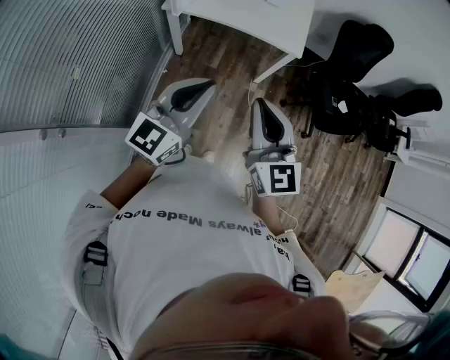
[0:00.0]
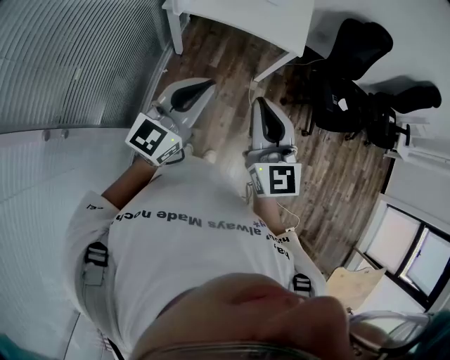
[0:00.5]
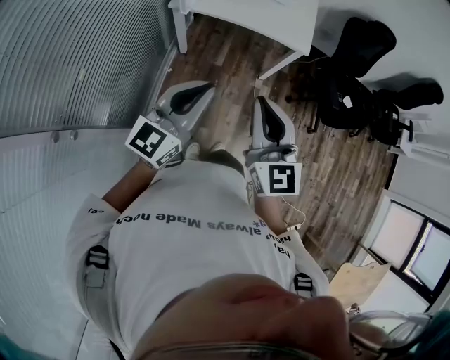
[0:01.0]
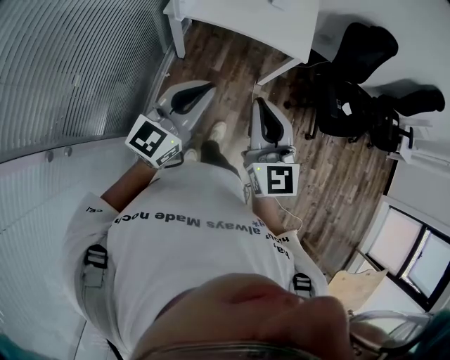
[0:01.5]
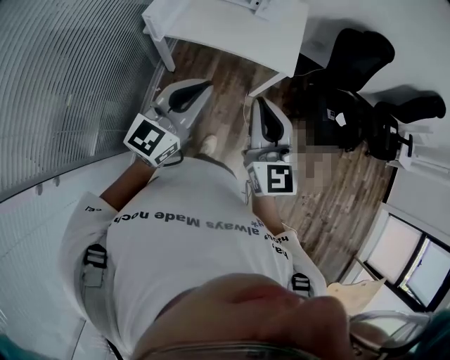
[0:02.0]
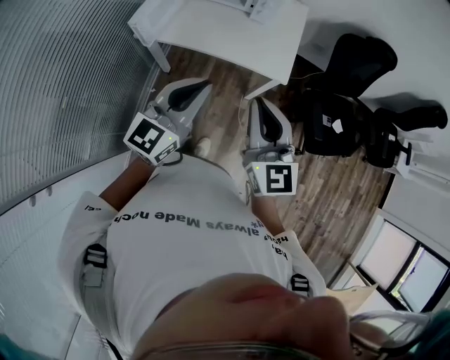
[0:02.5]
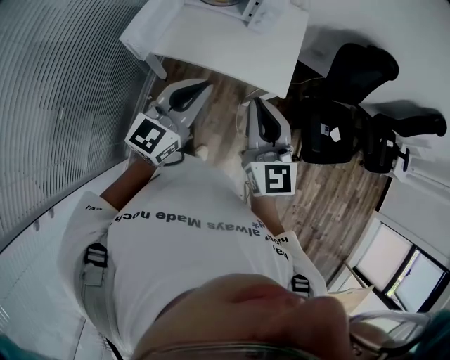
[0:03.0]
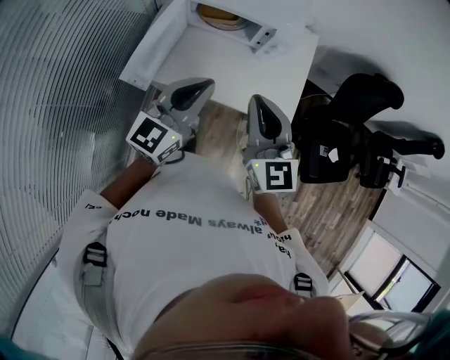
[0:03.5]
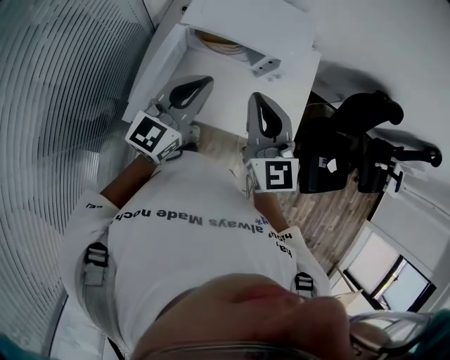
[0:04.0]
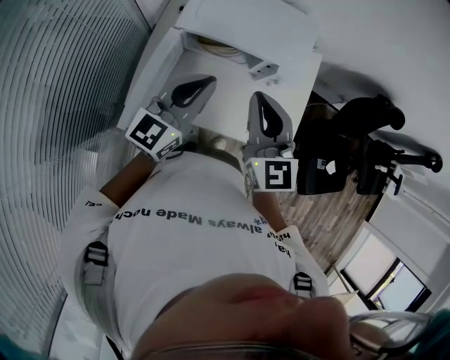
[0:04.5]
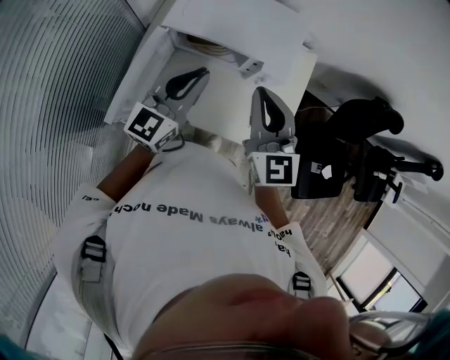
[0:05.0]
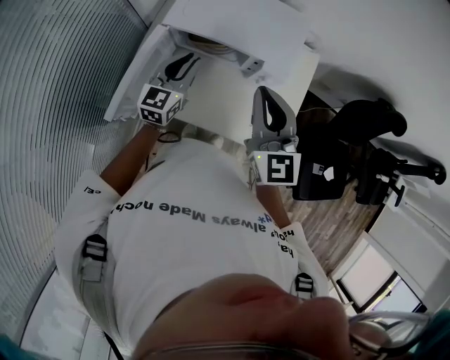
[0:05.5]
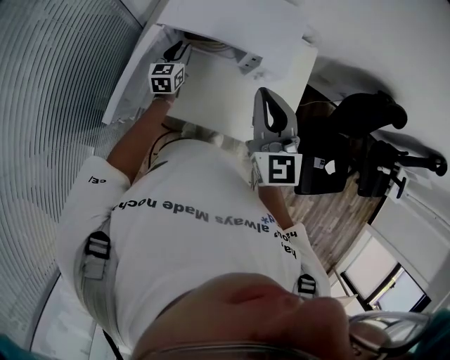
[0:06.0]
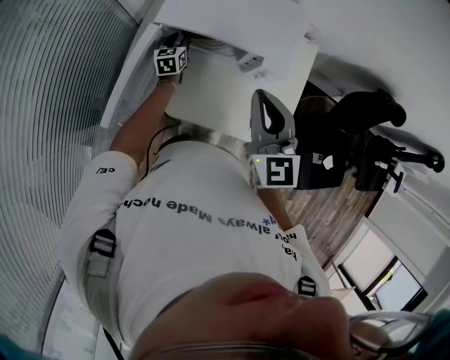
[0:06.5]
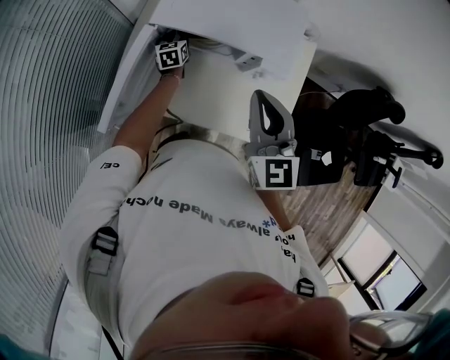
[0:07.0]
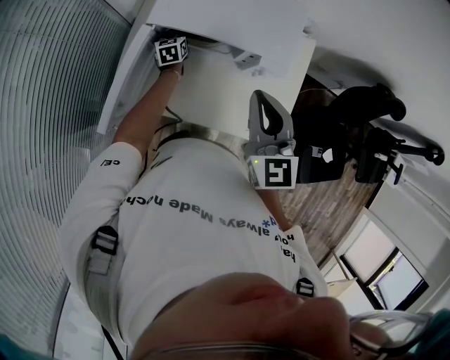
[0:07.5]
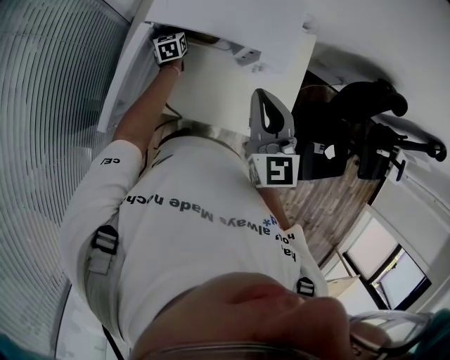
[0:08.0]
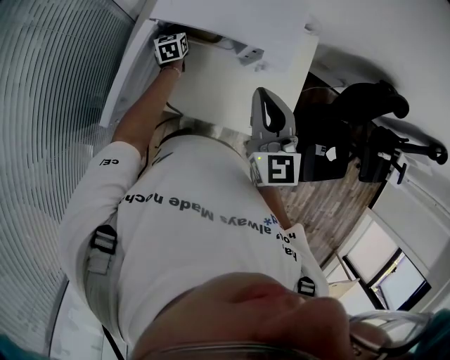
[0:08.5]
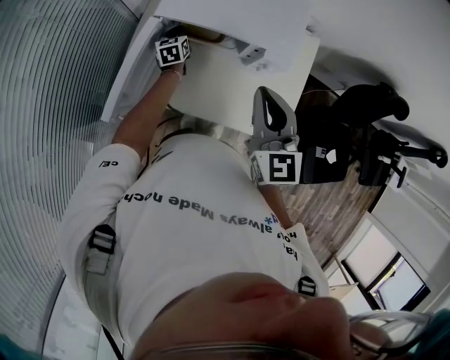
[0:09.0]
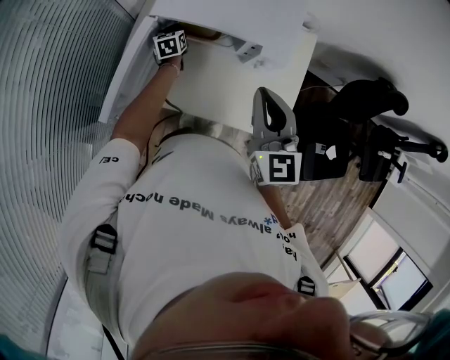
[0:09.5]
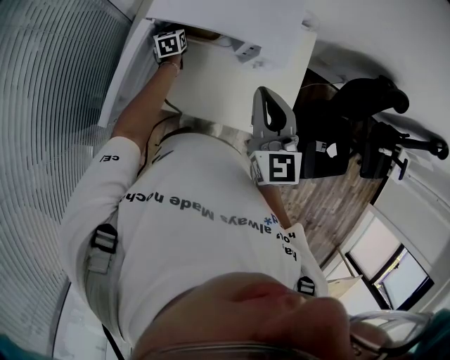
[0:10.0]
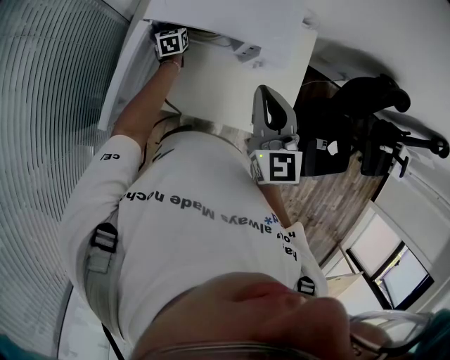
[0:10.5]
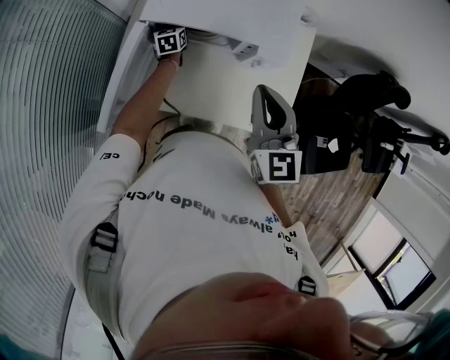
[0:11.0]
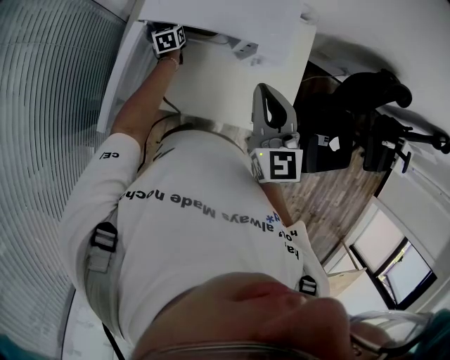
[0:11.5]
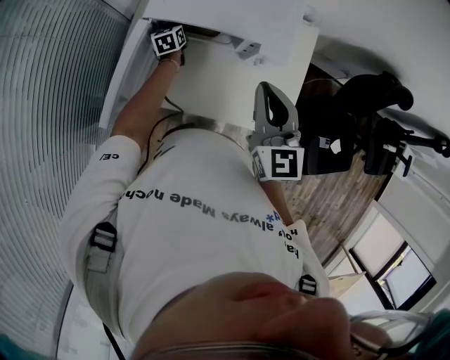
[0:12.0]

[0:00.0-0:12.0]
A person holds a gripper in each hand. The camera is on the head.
0:00.0 to 0:02.0: The two grippers go about 15 cm forward.
0:02.0 to 0:04.0: Both grippers are carried forward, roughly 50 cm.
0:04.0 to 0:06.0: The left gripper is displaced downward and forward by about 30 cm, turns by approximately 30 degrees, and opens up. Meanwhile the right gripper heads to the right and forward, covering roughly 10 cm.
0:06.0 to 0:08.0: The left gripper moves downward and forward, about 15 cm, and closes.
0:08.0 to 0:12.0: There are only small adjustments of the grippers.

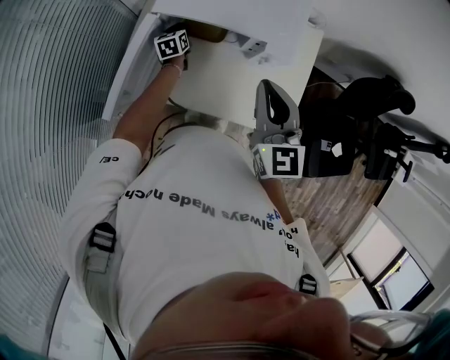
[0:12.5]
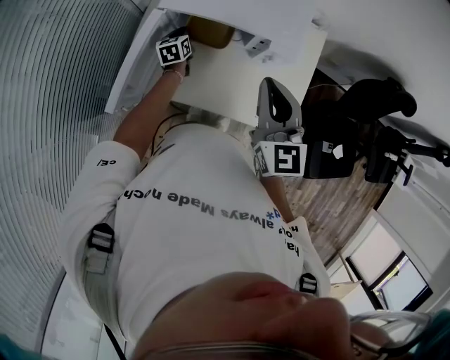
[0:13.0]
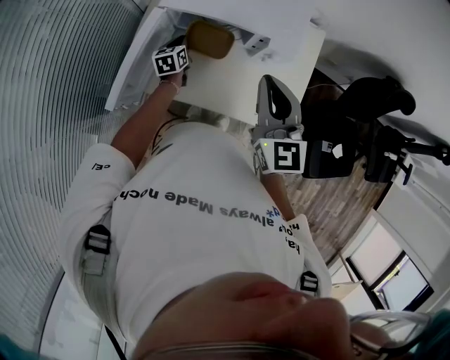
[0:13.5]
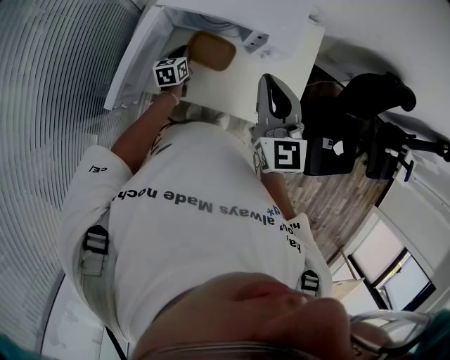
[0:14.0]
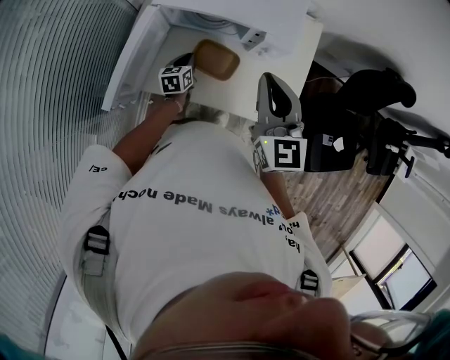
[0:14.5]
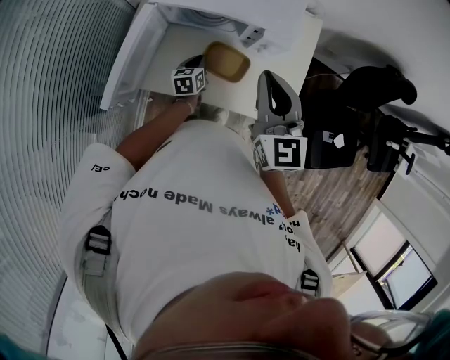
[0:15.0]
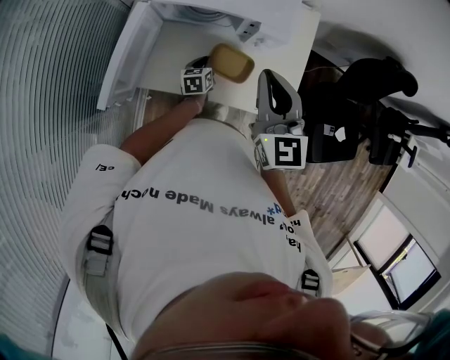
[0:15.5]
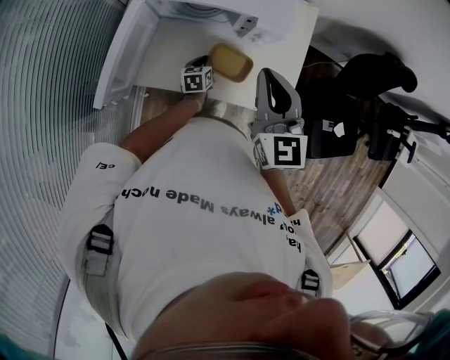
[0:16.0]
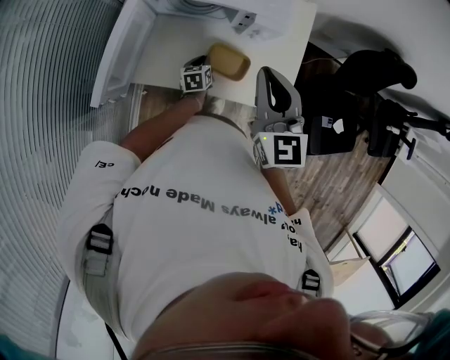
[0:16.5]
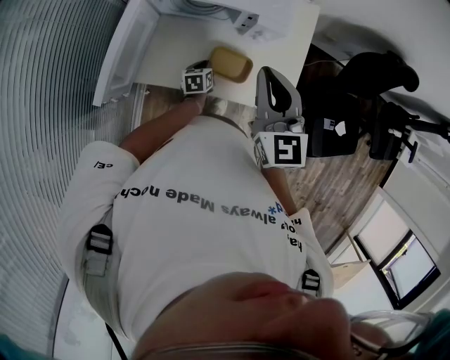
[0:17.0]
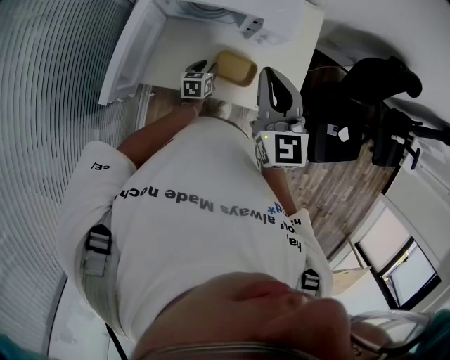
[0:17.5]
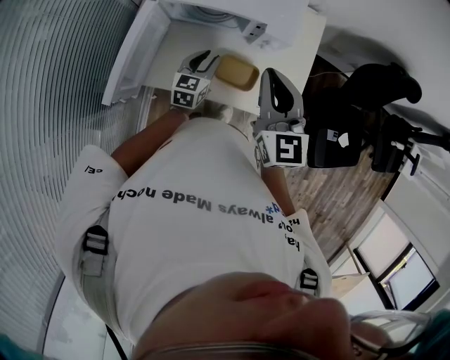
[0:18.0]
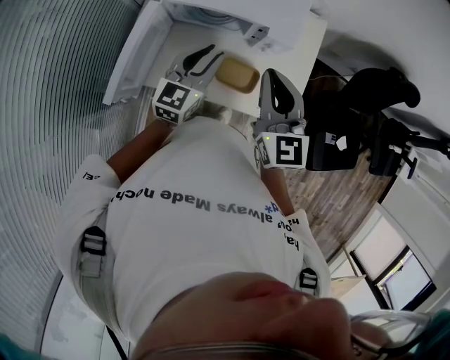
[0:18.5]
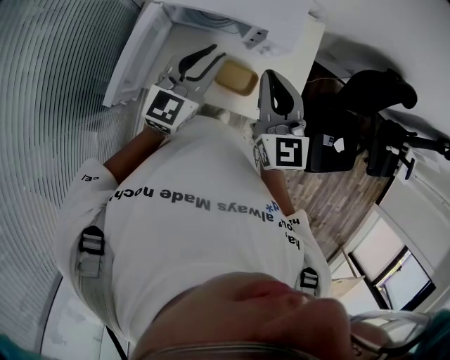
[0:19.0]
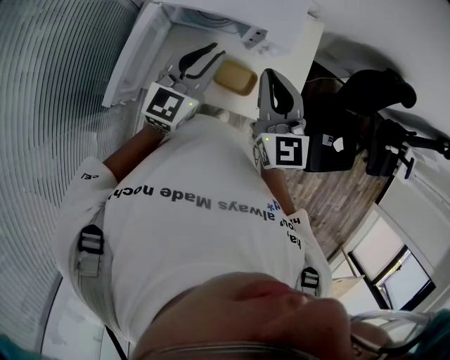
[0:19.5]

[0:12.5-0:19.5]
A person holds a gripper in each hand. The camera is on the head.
0:12.5 to 0:14.5: The left gripper travels backward by roughly 15 cm.
0:14.5 to 0:16.0: The left gripper shifts roughly 10 cm to the right and downward.
0:16.0 to 0:17.5: The left gripper opens.
0:17.5 to 0:19.5: The left gripper shifts some 35 cm upward, and points its fingers approximately 40 degrees further upward.

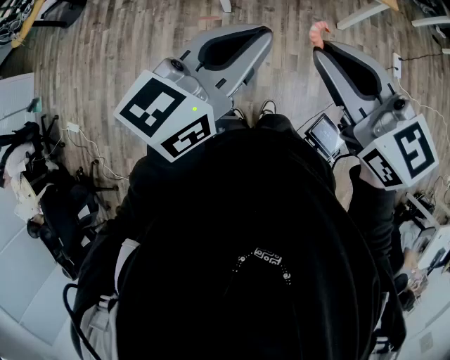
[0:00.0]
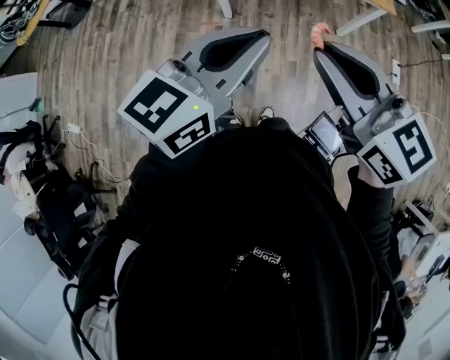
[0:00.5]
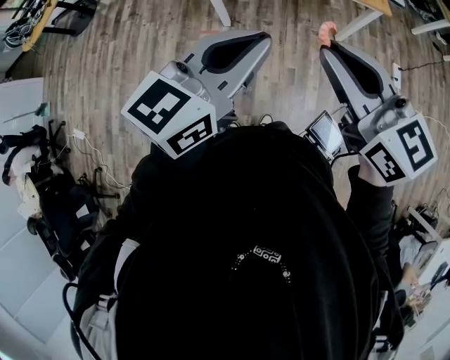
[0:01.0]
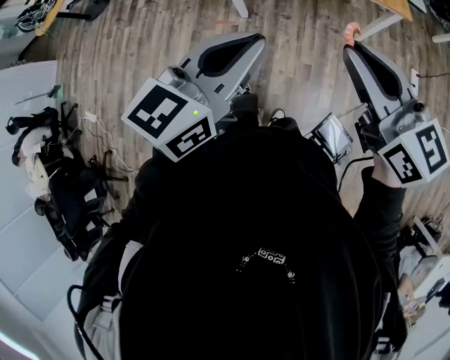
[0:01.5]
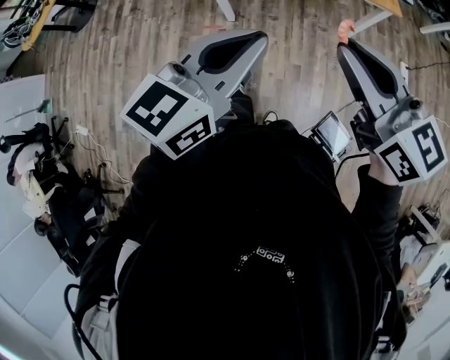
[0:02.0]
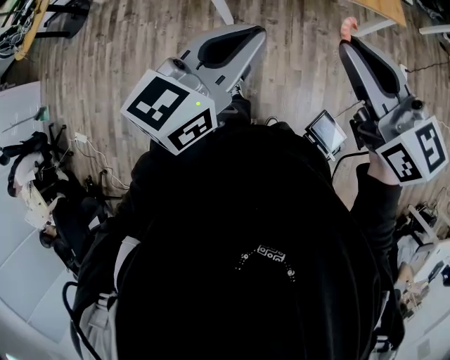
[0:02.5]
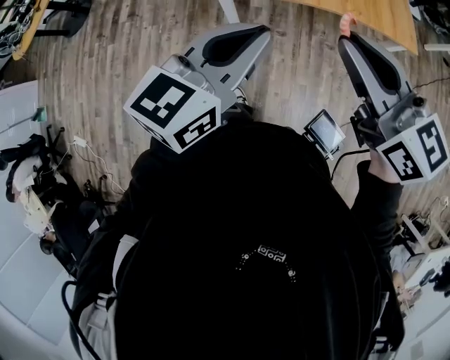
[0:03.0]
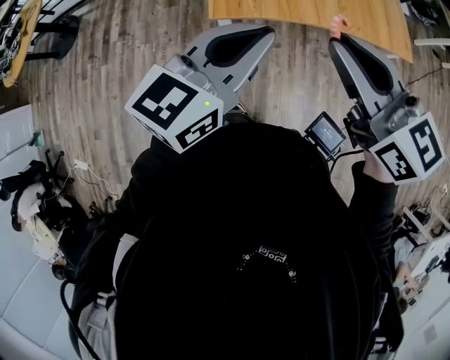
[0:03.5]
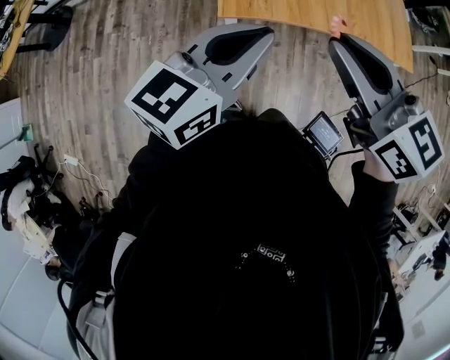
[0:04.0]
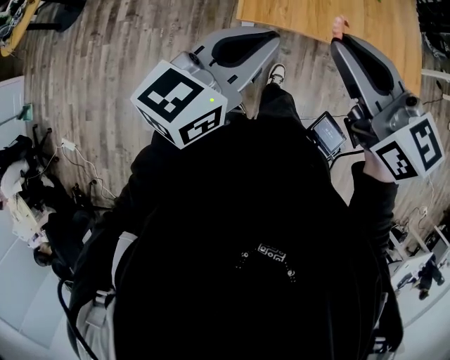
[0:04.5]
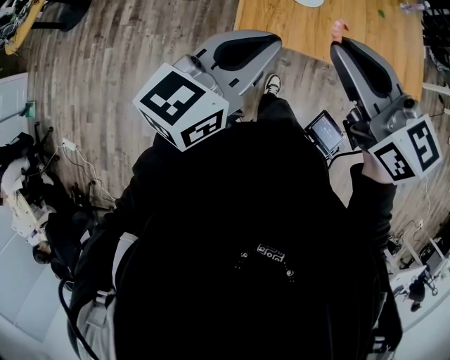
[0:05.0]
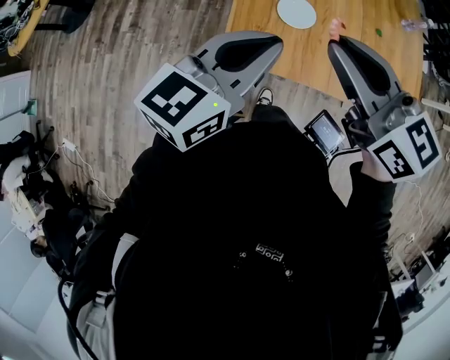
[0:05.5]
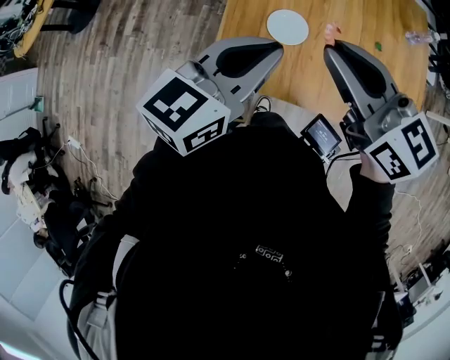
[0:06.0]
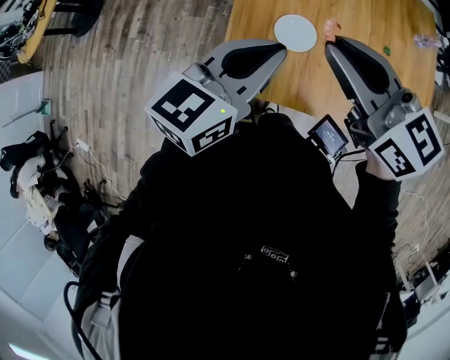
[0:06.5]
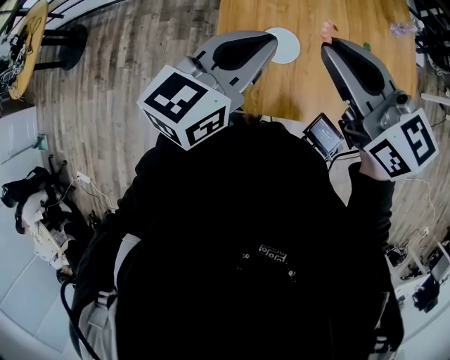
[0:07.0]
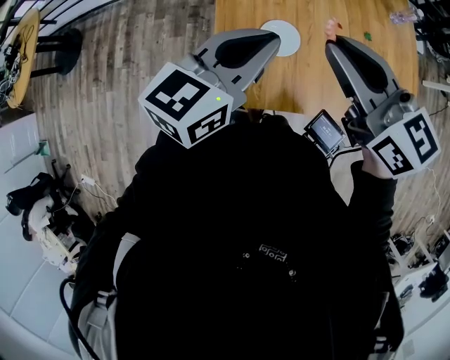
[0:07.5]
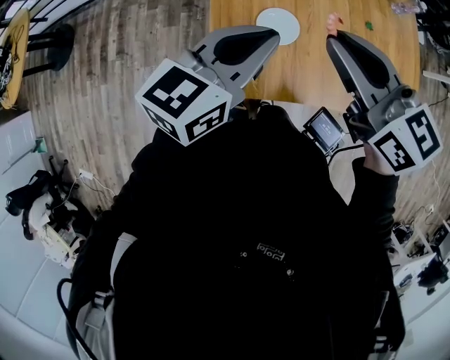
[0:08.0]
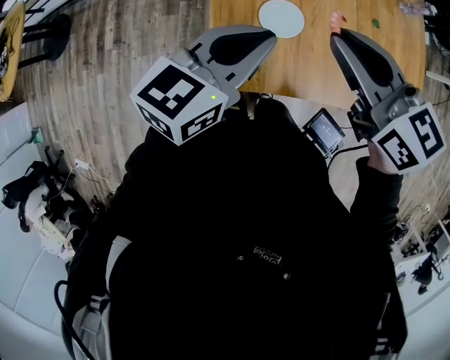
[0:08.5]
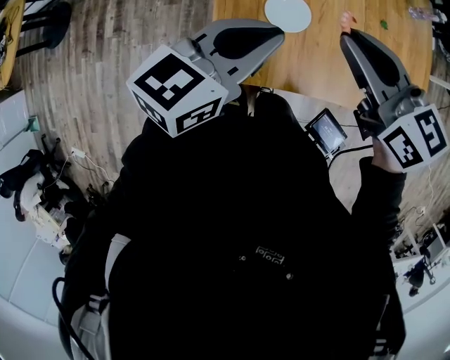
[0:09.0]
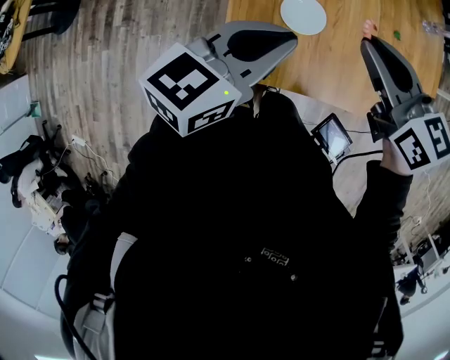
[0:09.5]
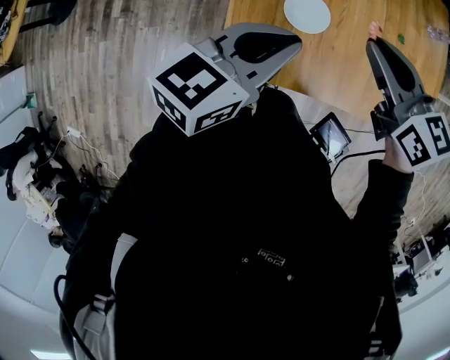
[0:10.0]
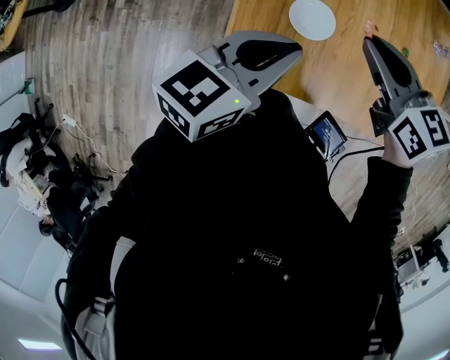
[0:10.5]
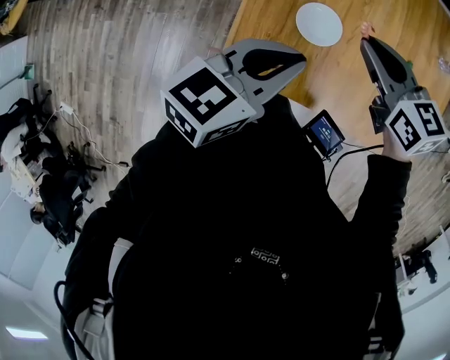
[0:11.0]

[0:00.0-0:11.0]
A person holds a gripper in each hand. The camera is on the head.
0:00.0 to 0:02.0: The left gripper shifts roughly 5 cm forward. The right gripper moves to the right and forward, approximately 10 cm.
0:02.0 to 0:03.5: The grippers both shift forward and to the left by approximately 30 cm.
0:03.5 to 0:05.5: The grippers both shift forward by about 20 cm.
0:05.5 to 0:07.5: Both grippers move forward and to the right, roughly 15 cm.
0:07.5 to 0:09.0: The grippers both shift downward by some 5 cm.
0:09.0 to 0:11.0: The right gripper shifts roughly 10 cm downward and forward; the left gripper goes approximately 5 cm downward.
